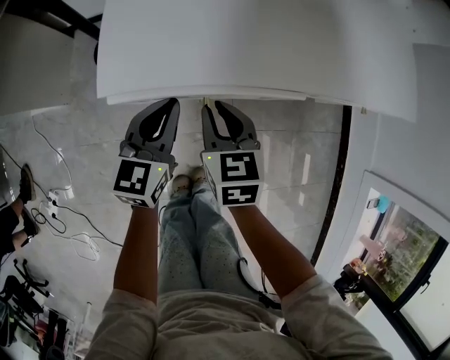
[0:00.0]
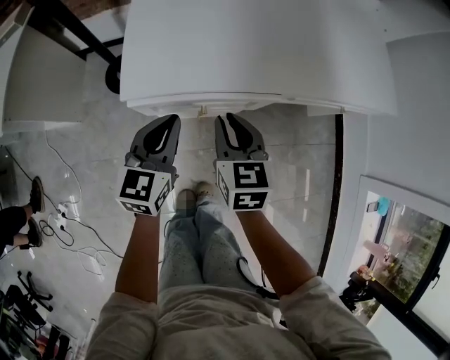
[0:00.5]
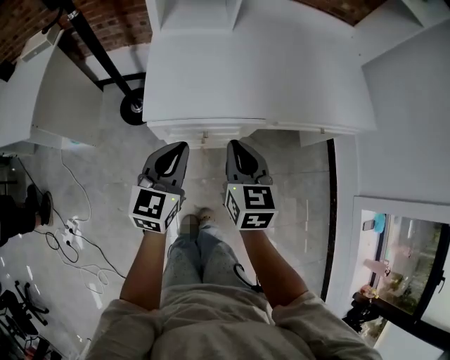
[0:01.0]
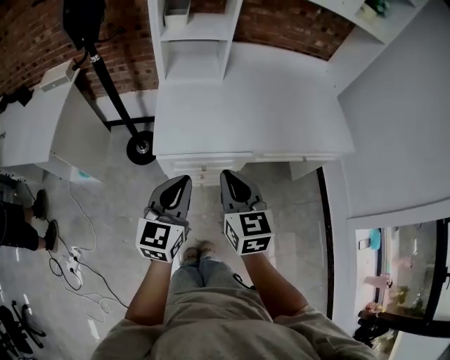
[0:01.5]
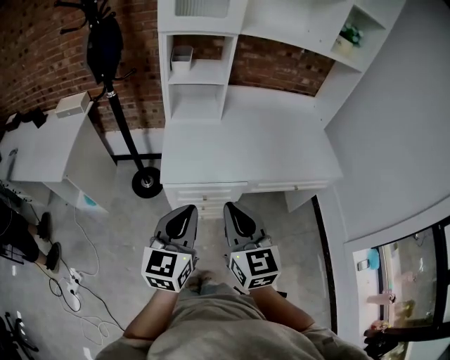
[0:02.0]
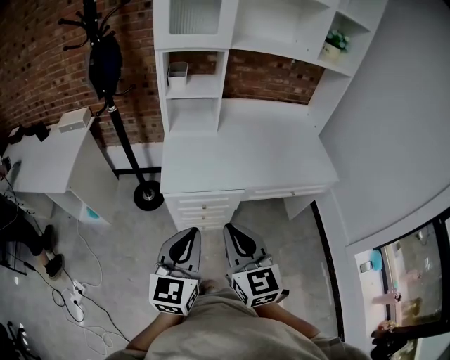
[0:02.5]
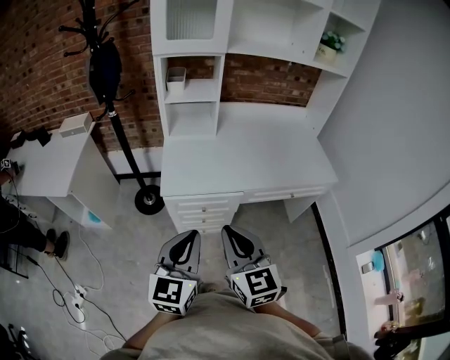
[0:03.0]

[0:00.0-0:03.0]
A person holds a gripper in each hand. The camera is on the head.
0:00.0 to 0:01.5: The right gripper is displaced upward by approximately 30 cm, and swivels about 20 degrees. Meanwhile the left gripper goes approximately 35 cm upward and backward.
0:01.5 to 0:03.0: Both grippers move backward and upward, approximately 20 cm.

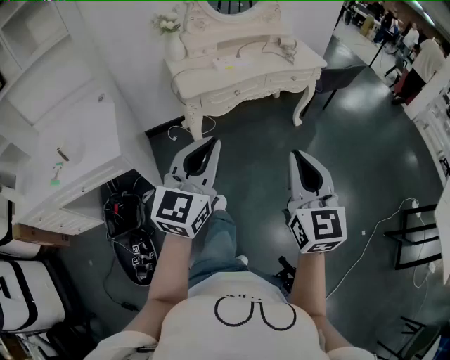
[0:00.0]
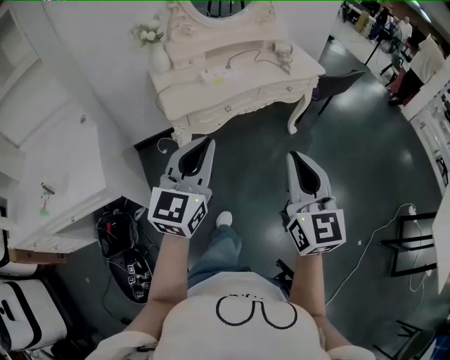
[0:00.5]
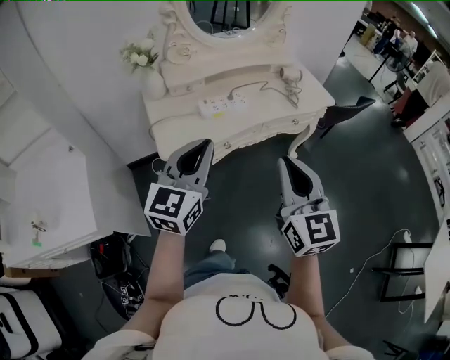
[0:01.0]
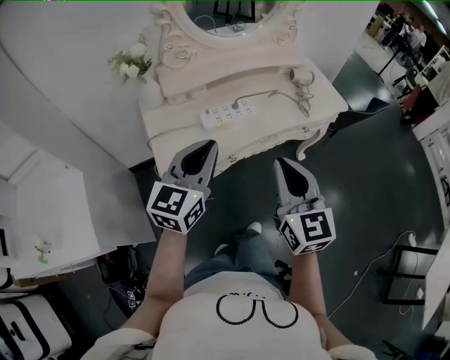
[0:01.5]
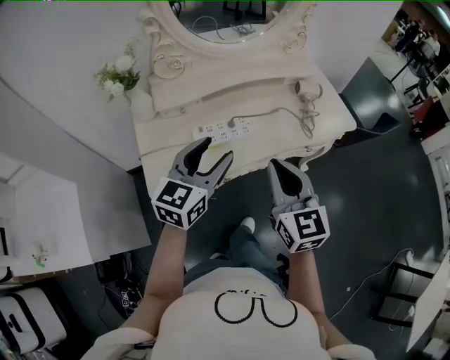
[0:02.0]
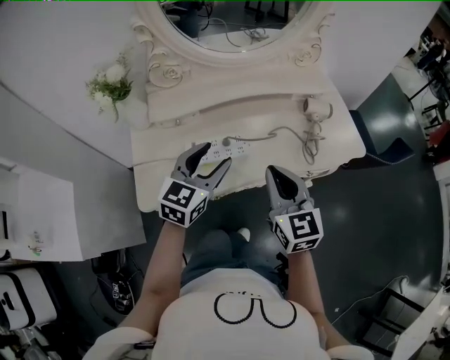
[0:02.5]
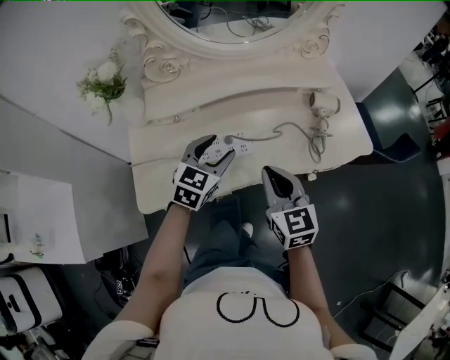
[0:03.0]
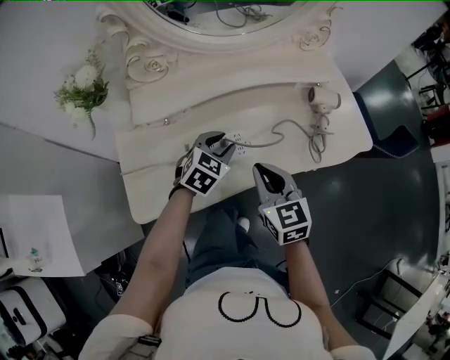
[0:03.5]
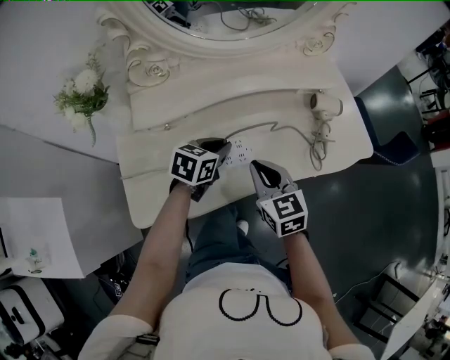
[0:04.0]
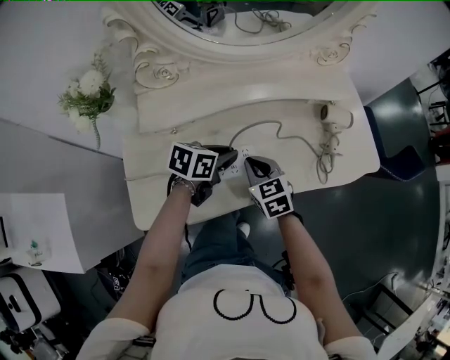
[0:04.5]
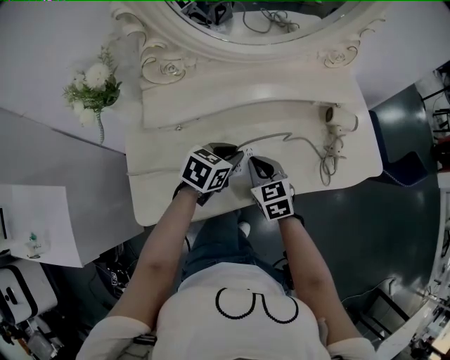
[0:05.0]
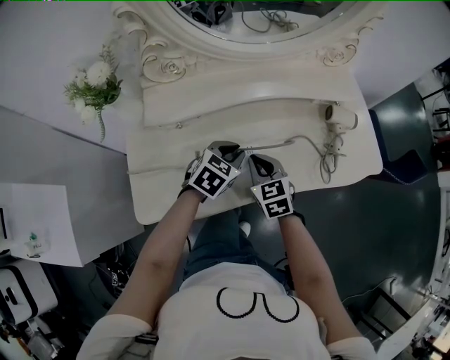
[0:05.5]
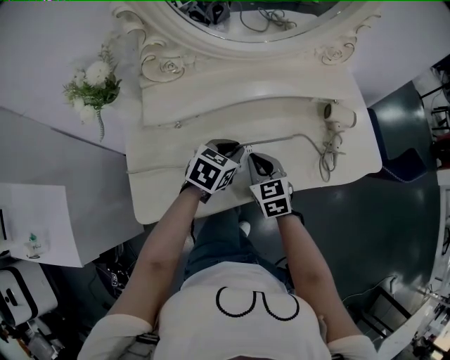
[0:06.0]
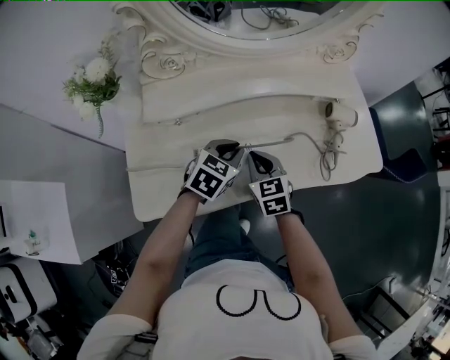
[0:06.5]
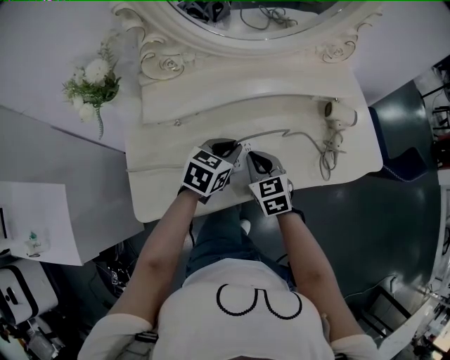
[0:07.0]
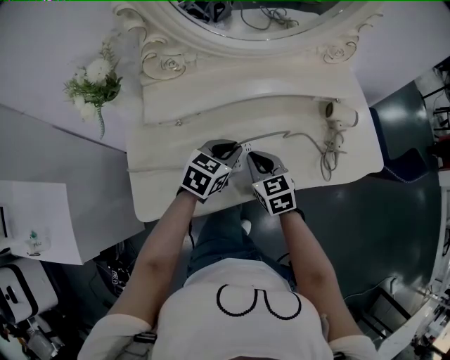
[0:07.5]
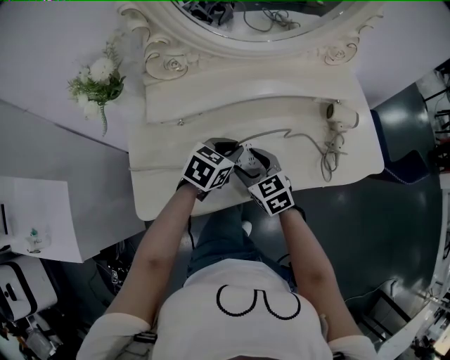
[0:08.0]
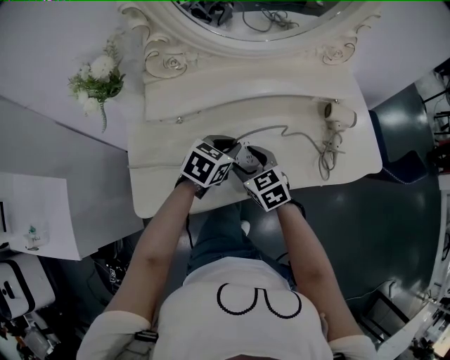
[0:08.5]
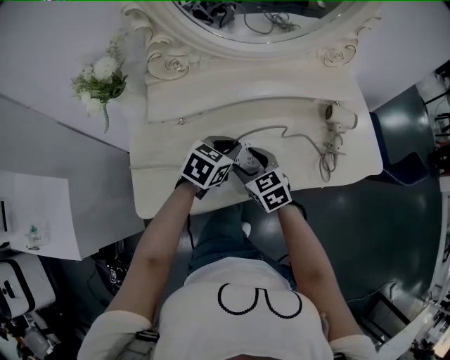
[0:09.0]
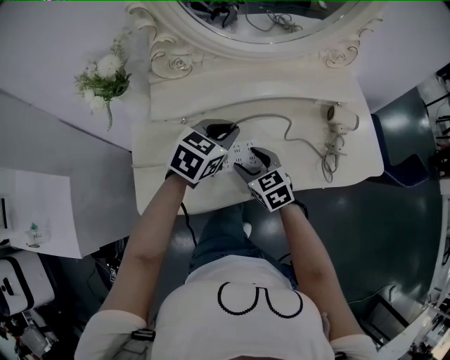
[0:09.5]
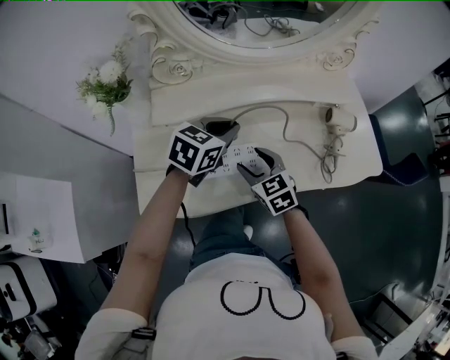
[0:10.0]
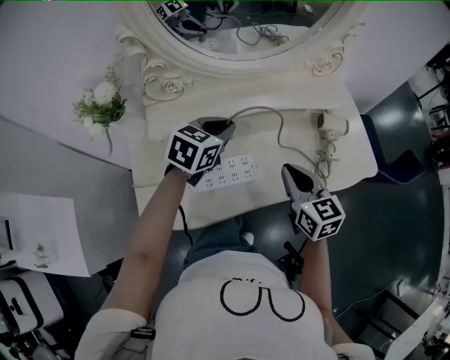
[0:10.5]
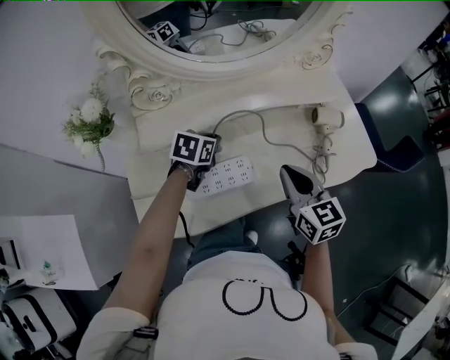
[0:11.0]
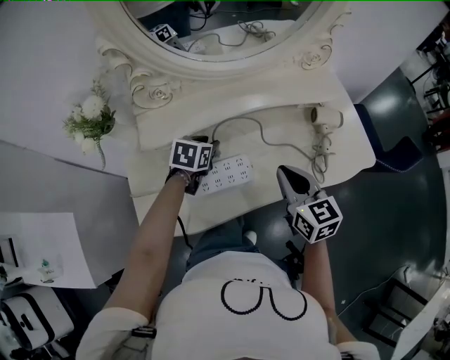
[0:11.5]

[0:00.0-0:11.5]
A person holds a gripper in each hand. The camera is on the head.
0:00.0 to 0:02.0: The two grippers travel together, forward, some 60 cm. The left gripper opens up.
0:02.0 to 0:04.0: Both grippers travel together forward and downward, about 25 cm. The left gripper turns by roughly 30 degrees, and closes. The right gripper swivels approximately 20 degrees.
0:04.0 to 0:06.0: The right gripper travels downward by some 10 cm.
0:06.0 to 0:07.5: The grippers move only a little.
0:07.5 to 0:09.5: The left gripper shifts some 10 cm upward, while the right gripper opens.
0:09.5 to 0:11.5: The left gripper heads downward and forward, covering about 10 cm, turns by roughly 20 degrees, and opens. The right gripper moves upward and to the right, some 20 cm, rotates some 30 degrees, and closes its fingers.

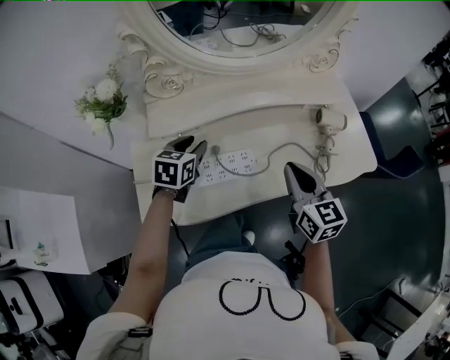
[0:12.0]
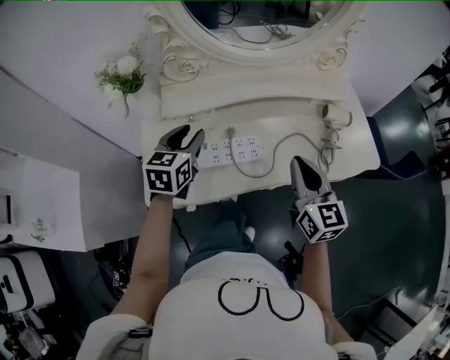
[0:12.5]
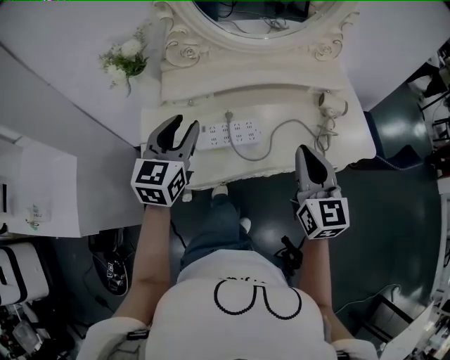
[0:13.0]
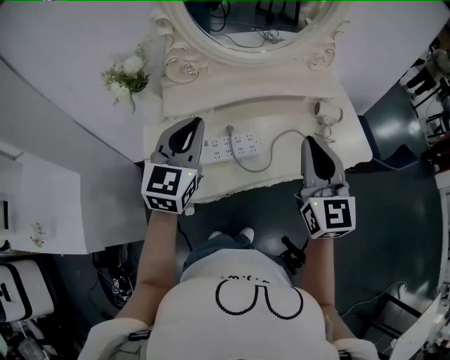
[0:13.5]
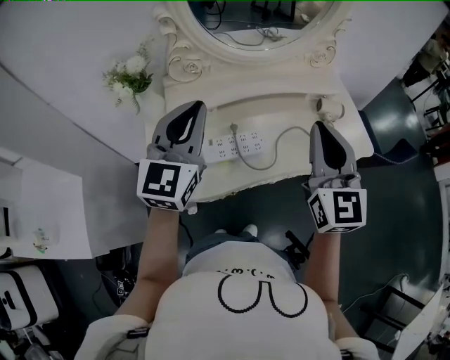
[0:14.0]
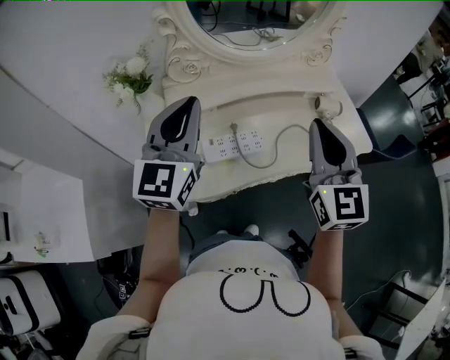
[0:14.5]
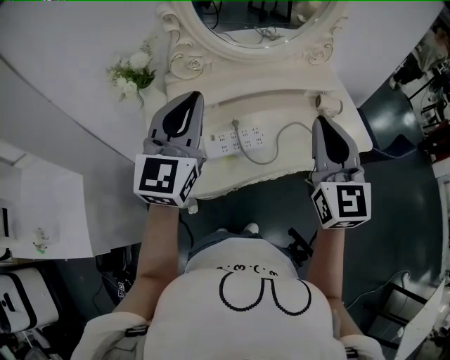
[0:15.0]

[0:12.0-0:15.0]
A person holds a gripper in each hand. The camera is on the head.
0:12.0 to 0:13.5: The grippers both shift upward and backward by roughly 20 cm. The left gripper tips its fingers upward by roughly 30 degrees, and closes up, while the right gripper swivels approximately 30 degrees.
0:13.5 to 0:15.0: The right gripper heads upward, covering about 5 cm, while the left gripper goes approximately 10 cm upward.

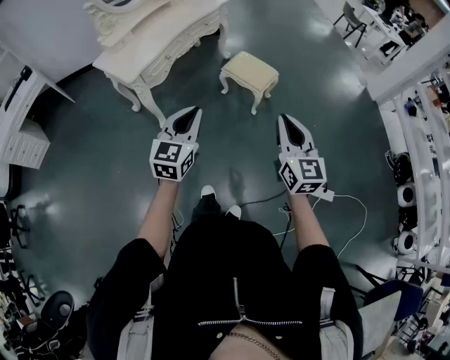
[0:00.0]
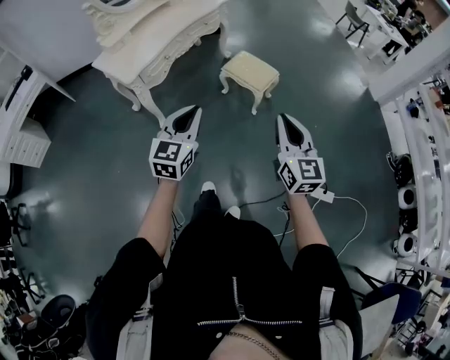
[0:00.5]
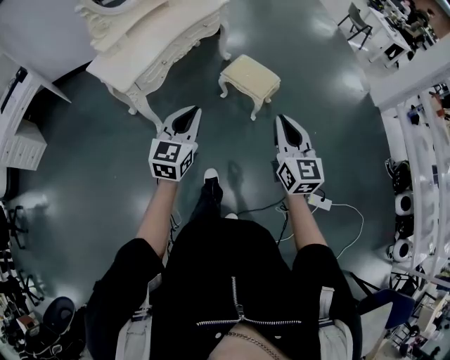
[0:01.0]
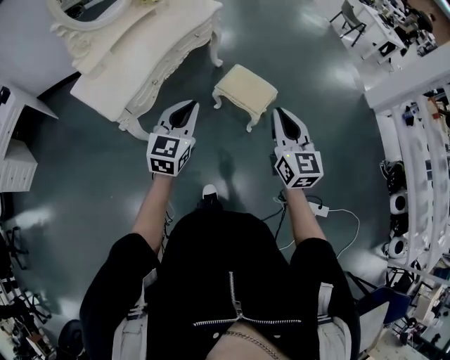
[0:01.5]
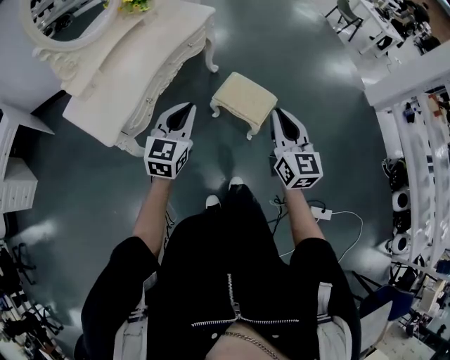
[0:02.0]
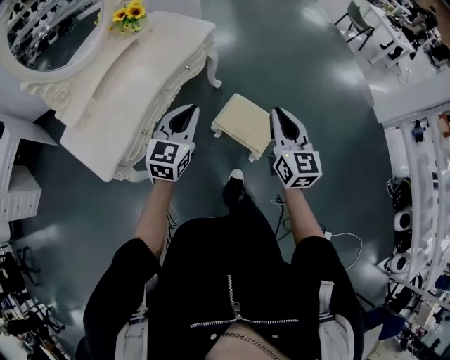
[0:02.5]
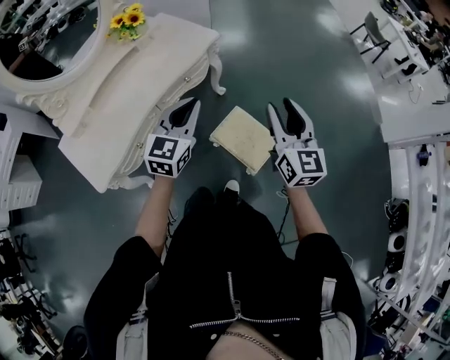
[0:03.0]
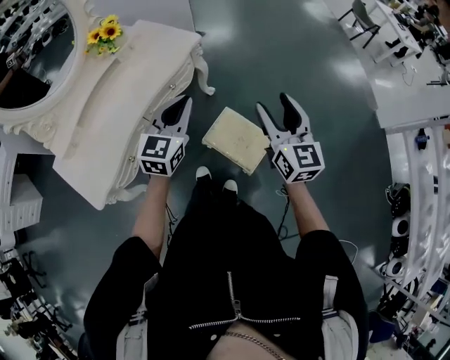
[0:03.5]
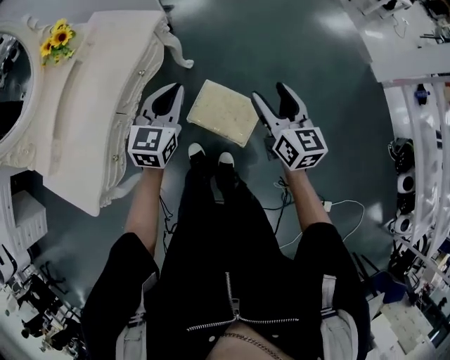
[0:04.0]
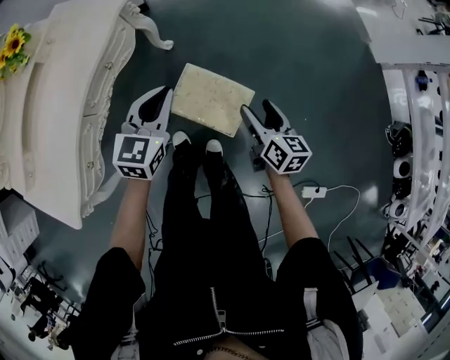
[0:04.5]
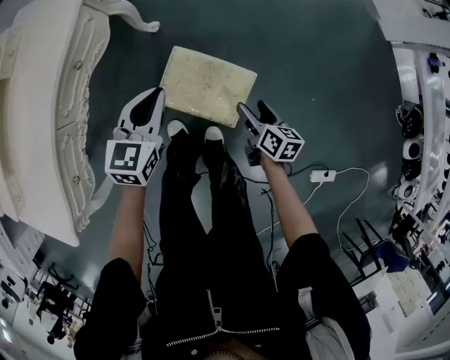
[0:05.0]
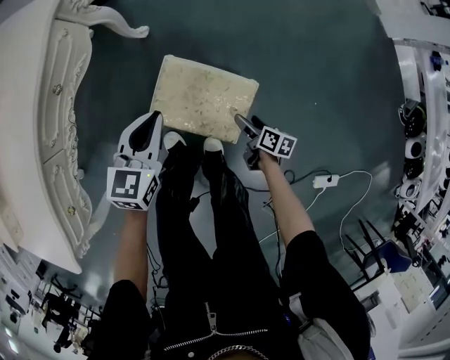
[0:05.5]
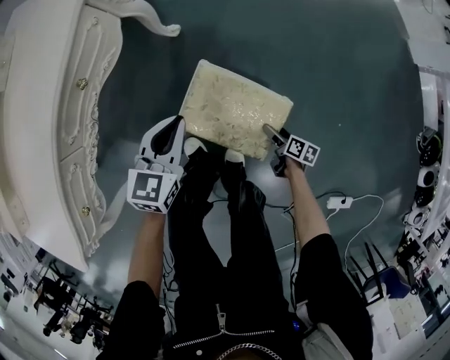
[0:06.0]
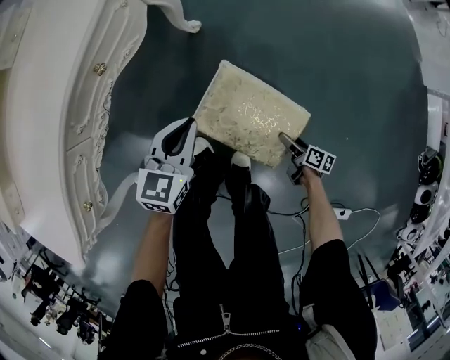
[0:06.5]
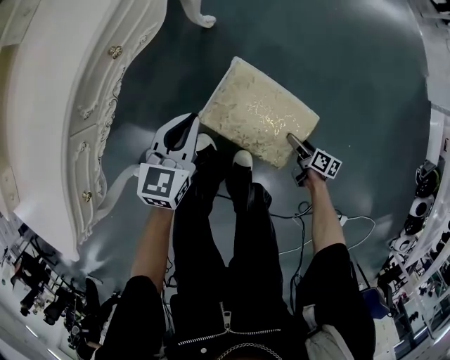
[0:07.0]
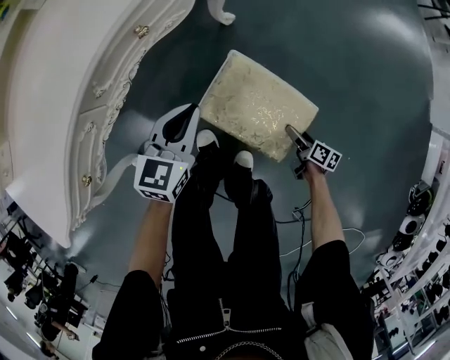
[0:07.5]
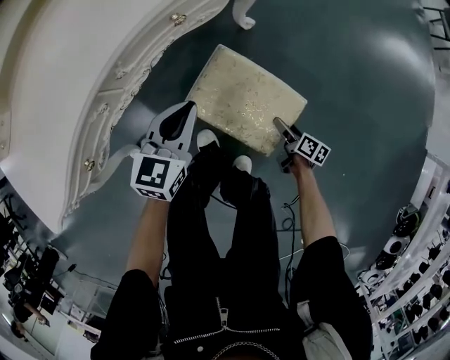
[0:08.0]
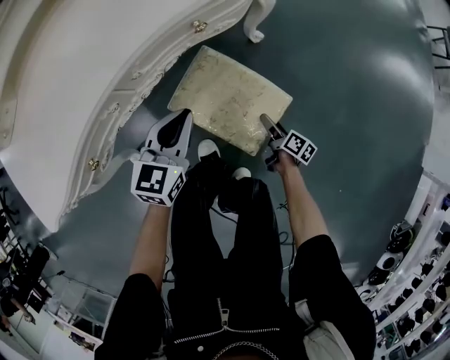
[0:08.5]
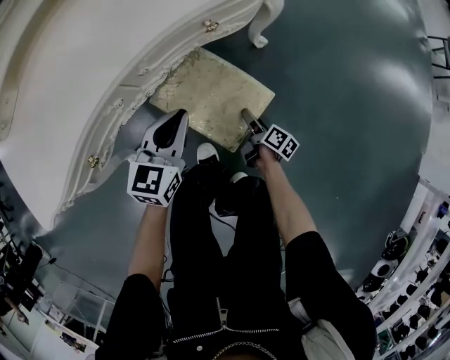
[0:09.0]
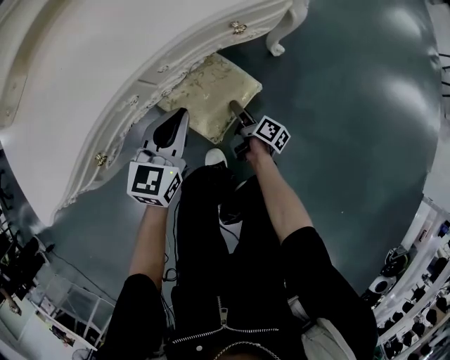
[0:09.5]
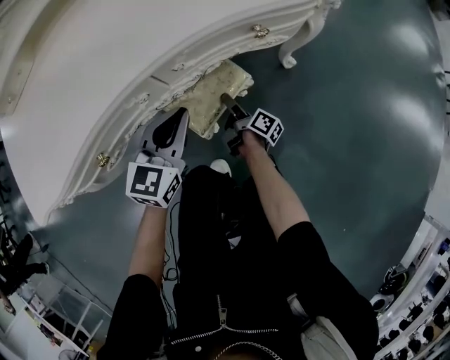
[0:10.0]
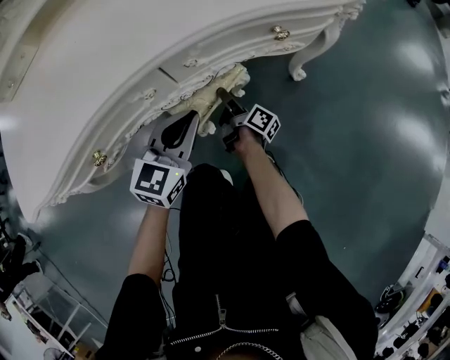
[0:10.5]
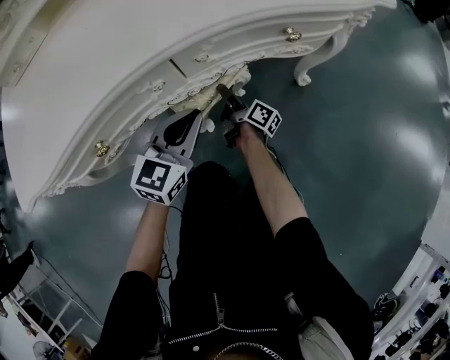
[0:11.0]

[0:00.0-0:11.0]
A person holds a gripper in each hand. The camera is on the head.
0:00.0 to 0:02.0: The grippers both shift forward by about 35 cm.
0:02.0 to 0:03.5: Both grippers move forward, approximately 35 cm. The right gripper opens.
0:03.5 to 0:05.5: The left gripper travels downward by some 35 cm, and turns by roughly 30 degrees; the right gripper shifts approximately 60 cm downward, and twists some 60 degrees clockwise, seen from behind.
0:05.5 to 0:07.5: The left gripper goes about 15 cm to the left and downward. Meanwhile the right gripper moves forward and downward, about 10 cm.
0:07.5 to 0:09.0: The right gripper goes some 25 cm to the left and forward, while the left gripper moves to the left, roughly 10 cm.
0:09.0 to 0:11.0: The left gripper travels to the left and downward by approximately 10 cm. The right gripper is displaced to the left and forward by about 30 cm, and swivels some 30 degrees.
